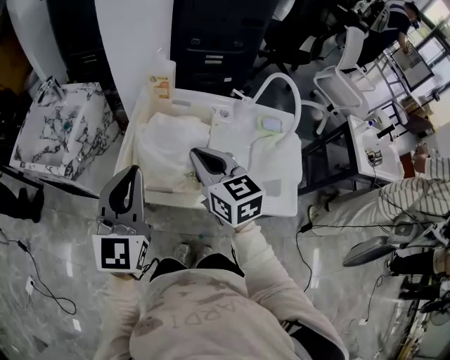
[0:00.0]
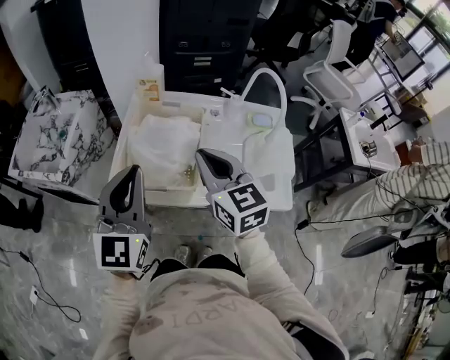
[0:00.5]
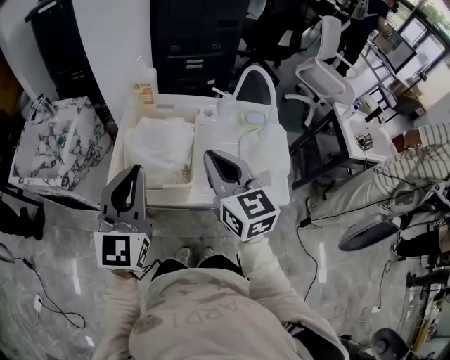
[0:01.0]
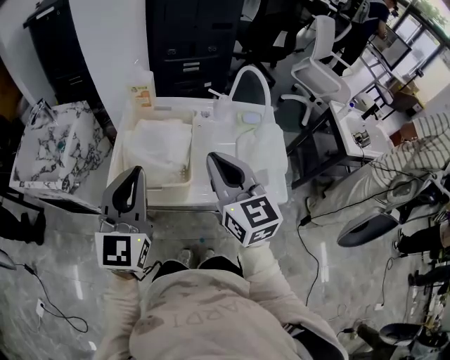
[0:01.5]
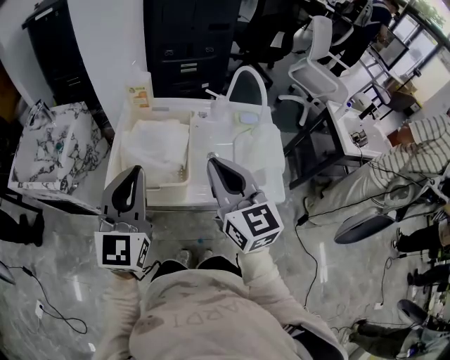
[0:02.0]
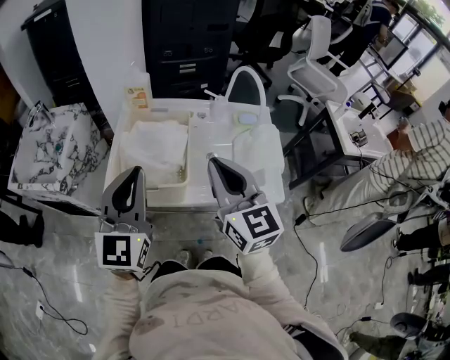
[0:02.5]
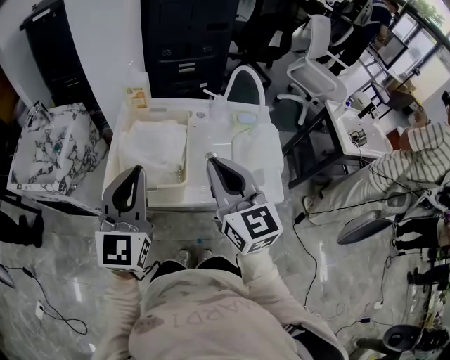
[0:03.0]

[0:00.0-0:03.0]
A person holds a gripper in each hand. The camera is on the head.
0:00.0 to 0:01.5: The right gripper travels backward, to the right and upward by approximately 15 cm, while the left gripper shifts by approximately 5 cm.
0:01.5 to 0:03.0: The grippers stay close to where they were, moving slightly.

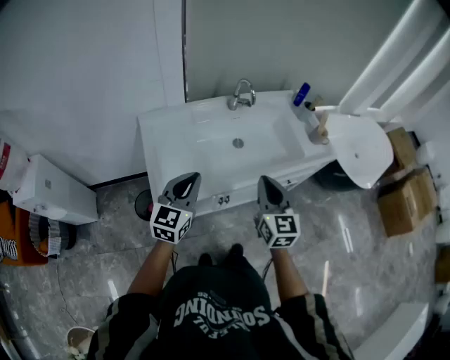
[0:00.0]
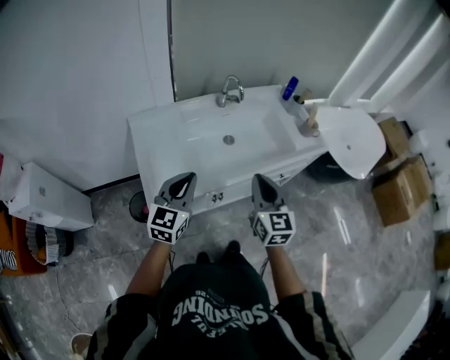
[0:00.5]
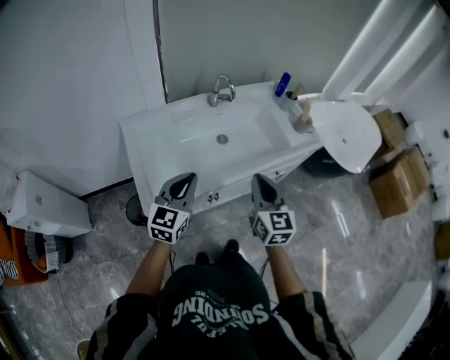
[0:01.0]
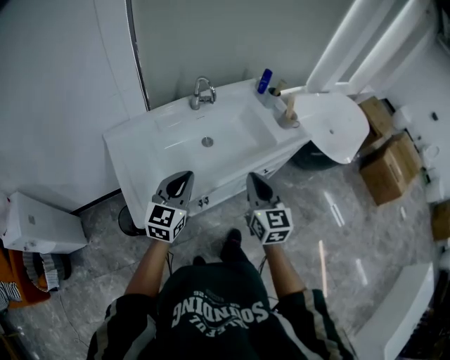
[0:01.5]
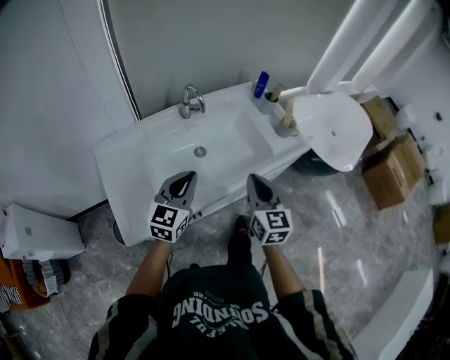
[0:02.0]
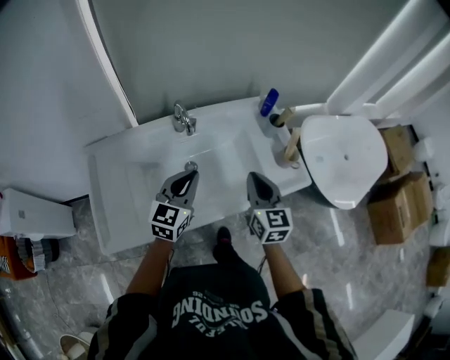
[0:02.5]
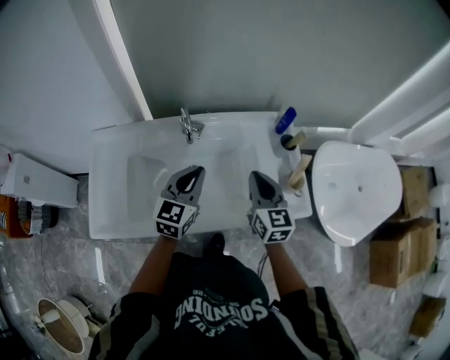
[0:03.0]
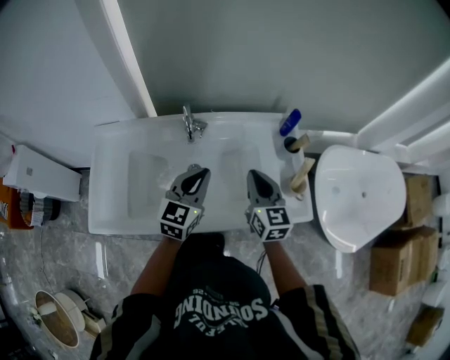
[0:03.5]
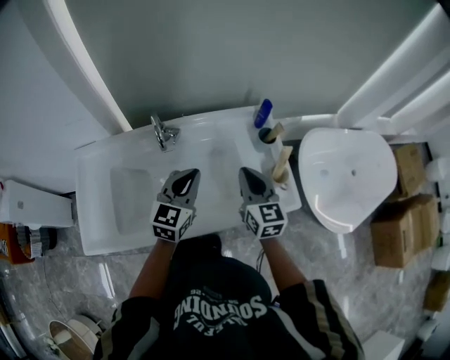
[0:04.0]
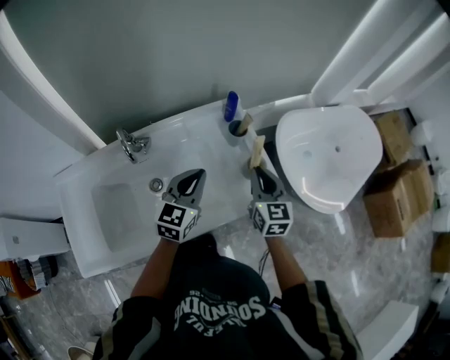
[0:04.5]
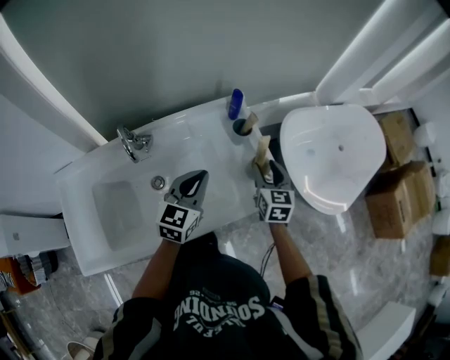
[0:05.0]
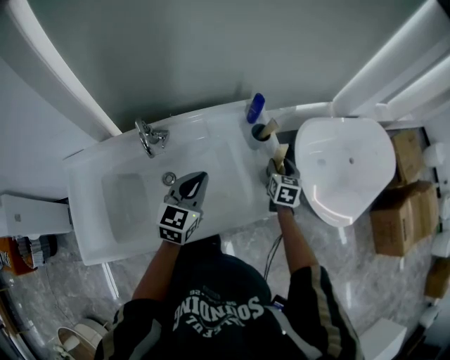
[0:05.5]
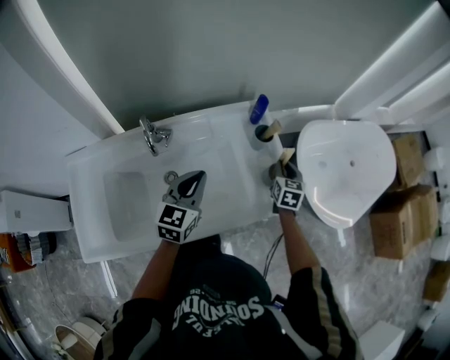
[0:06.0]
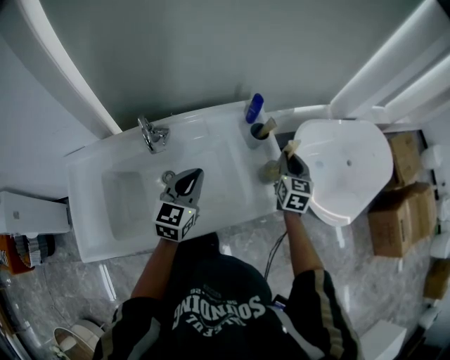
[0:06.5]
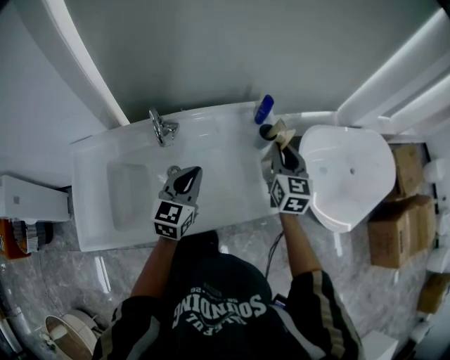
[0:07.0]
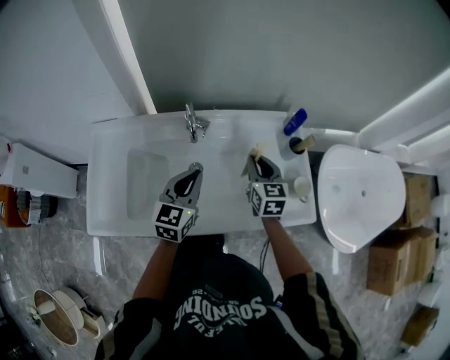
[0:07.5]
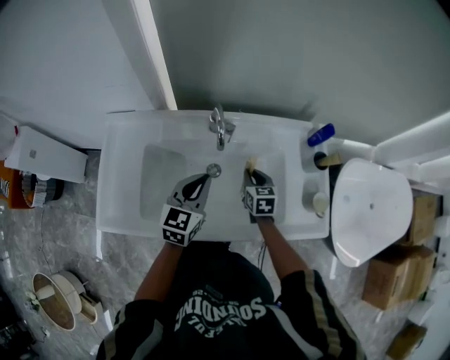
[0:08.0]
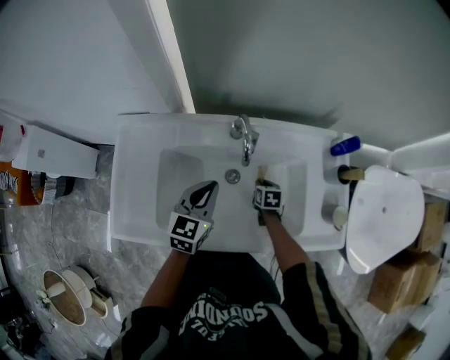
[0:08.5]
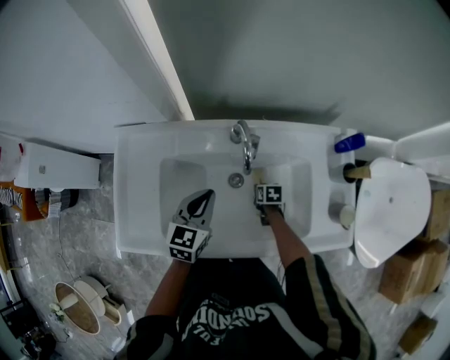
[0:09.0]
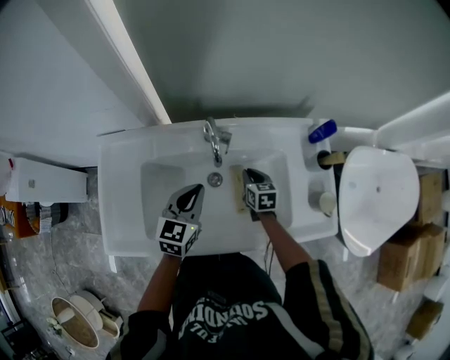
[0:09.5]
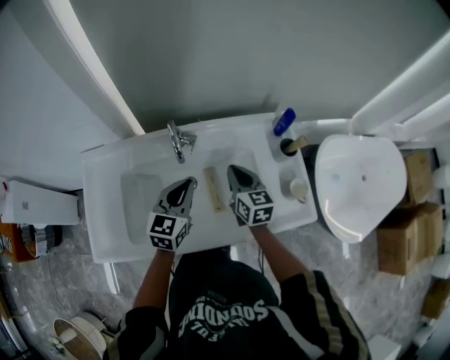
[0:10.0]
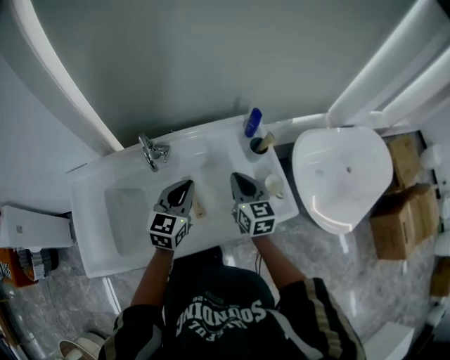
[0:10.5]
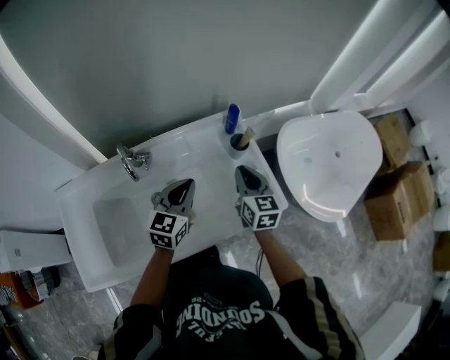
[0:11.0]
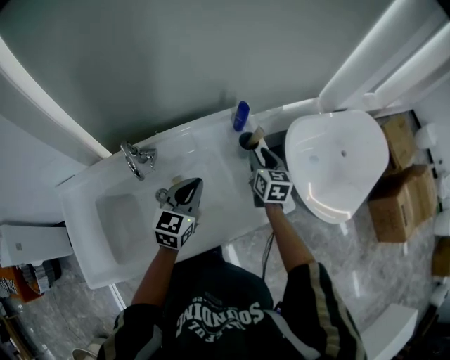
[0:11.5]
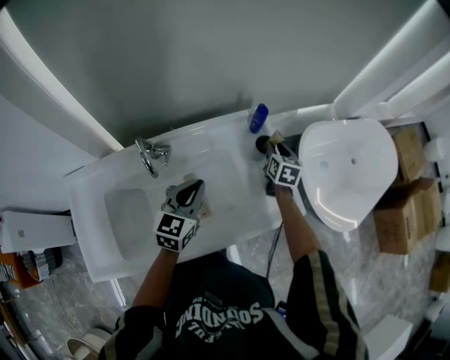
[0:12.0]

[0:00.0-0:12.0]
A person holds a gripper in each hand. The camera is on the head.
0:00.0 to 0:02.0: Both grippers move forward and to the right, approximately 15 cm.
0:02.0 to 0:04.0: Both grippers move forward and to the right, roughly 30 cm. The right gripper swivels approximately 20 degrees.
0:04.0 to 0:06.0: The left gripper moves roughly 10 cm to the right and comes back; the right gripper is displaced to the right, downward and forward by roughly 25 cm, changes its angle by some 30 degrees, and opens and closes again.
0:06.0 to 0:08.0: The left gripper shifts by approximately 15 cm. Meanwhile the right gripper moves about 15 cm upward and comes back, and rotates roughly 30 degrees.
0:08.0 to 0:10.0: The right gripper moves upward, approximately 10 cm, and changes its angle by some 20 degrees.
0:10.0 to 0:12.0: The left gripper heads to the right, covering roughly 10 cm; the right gripper travels to the right and forward by some 30 cm, turns by roughly 30 degrees, and opens its fingers.

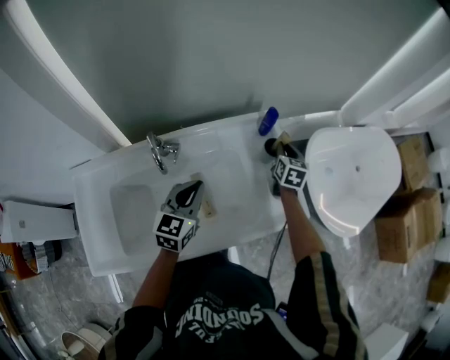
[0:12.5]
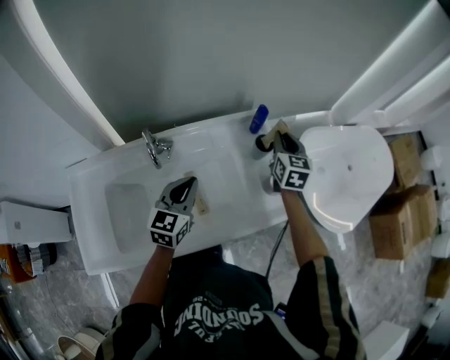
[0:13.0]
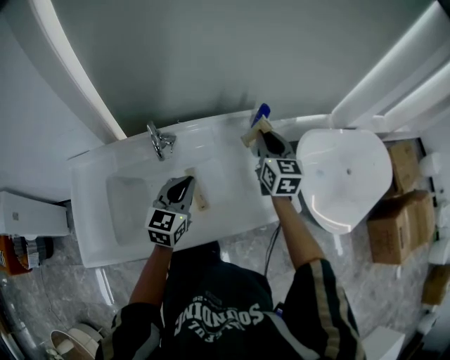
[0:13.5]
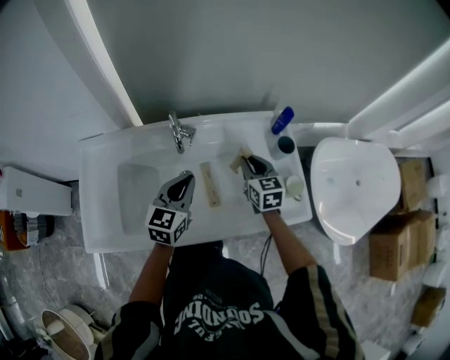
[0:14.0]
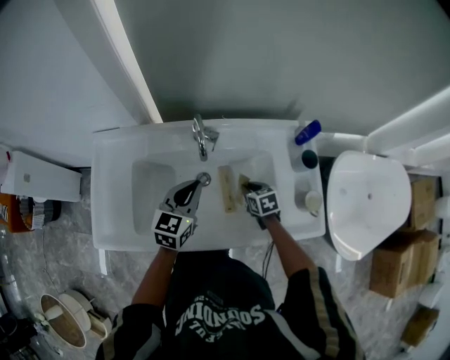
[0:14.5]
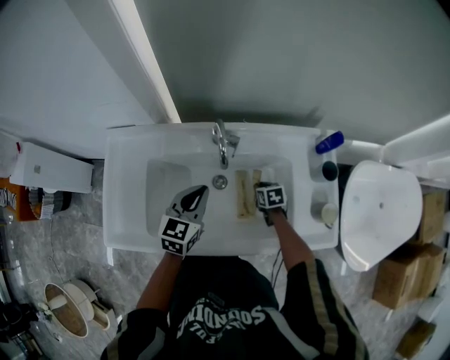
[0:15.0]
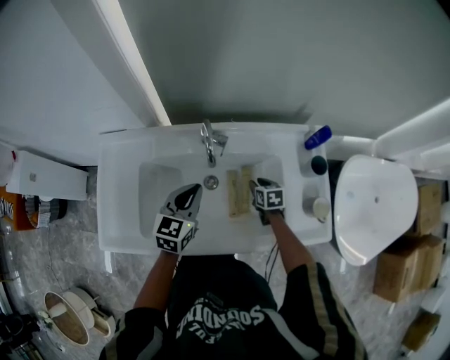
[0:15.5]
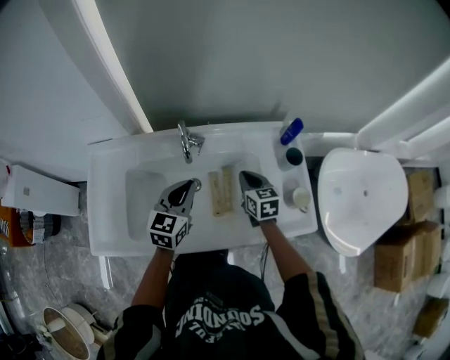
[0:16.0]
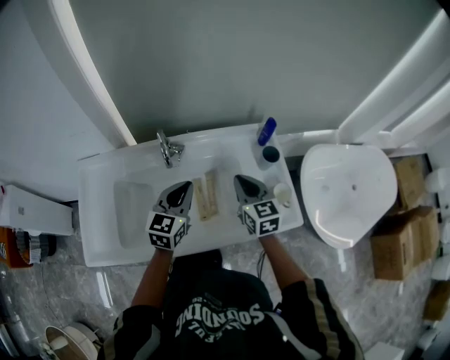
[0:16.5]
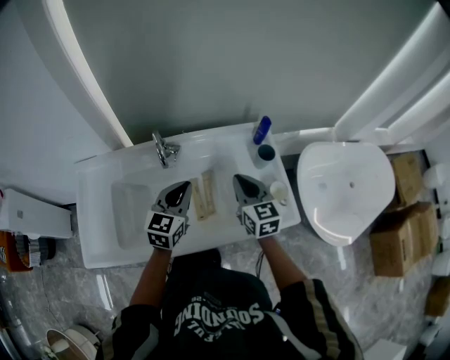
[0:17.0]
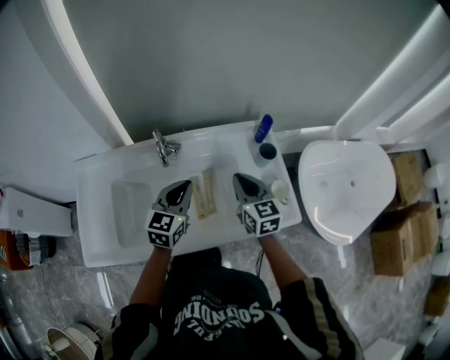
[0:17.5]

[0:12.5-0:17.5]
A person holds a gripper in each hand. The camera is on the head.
0:12.5 to 0:15.0: The left gripper shifts by approximately 15 cm; the right gripper shifts by approximately 35 cm, and points its fingers approximately 30 degrees further downward.
0:15.0 to 0:17.5: The right gripper heads upward, covering some 30 cm, and tips its fingers upward by approximately 40 degrees, while the left gripper travels to the right and upward by about 15 cm.

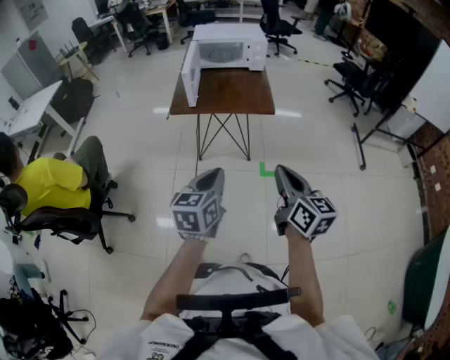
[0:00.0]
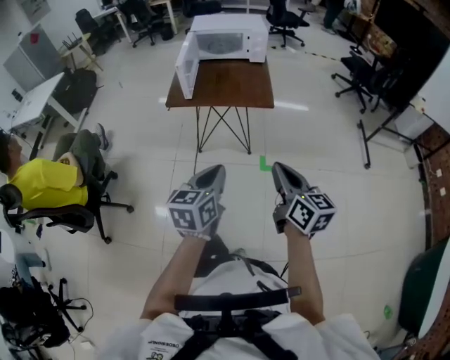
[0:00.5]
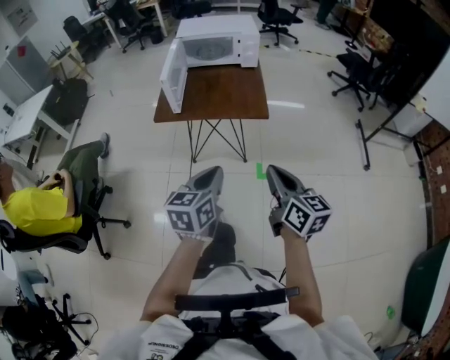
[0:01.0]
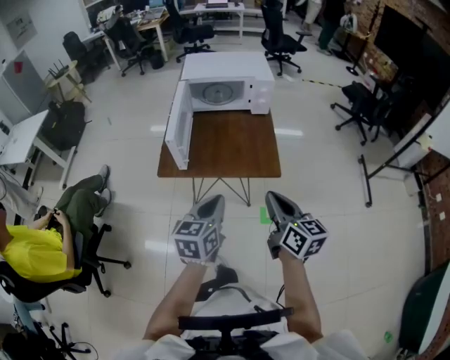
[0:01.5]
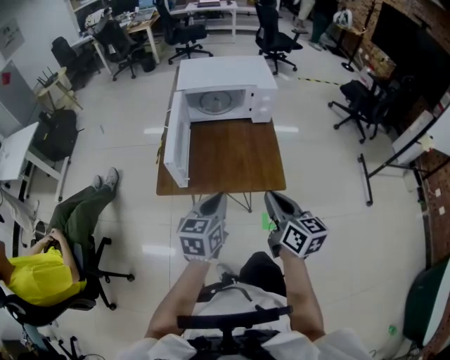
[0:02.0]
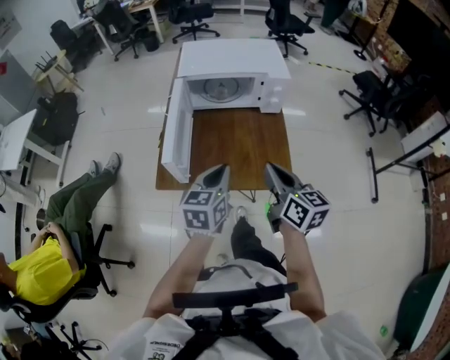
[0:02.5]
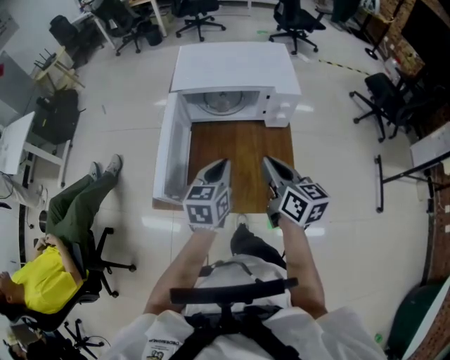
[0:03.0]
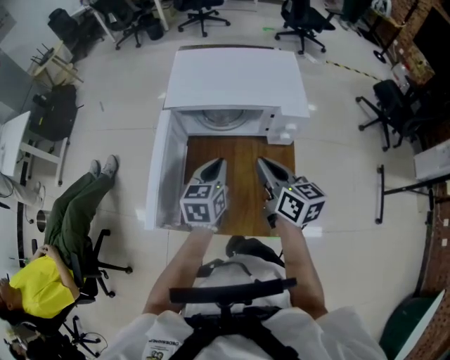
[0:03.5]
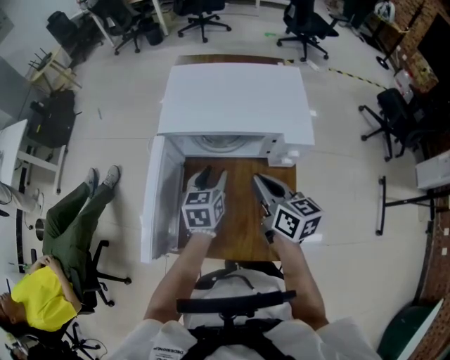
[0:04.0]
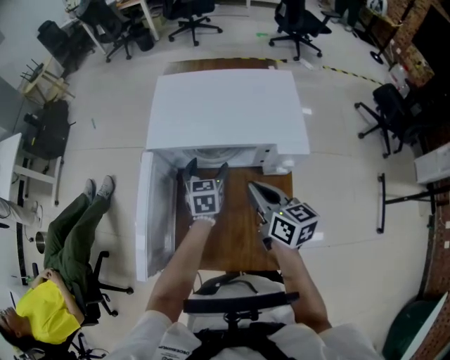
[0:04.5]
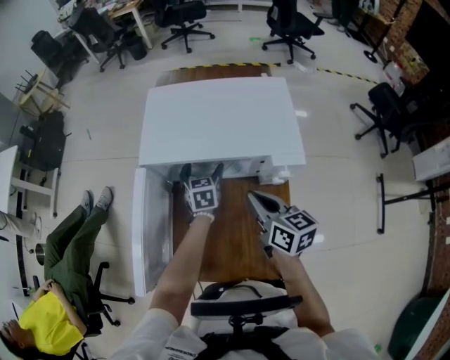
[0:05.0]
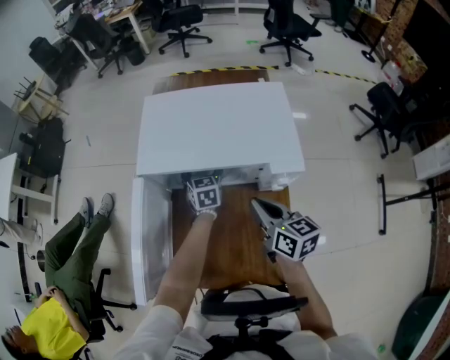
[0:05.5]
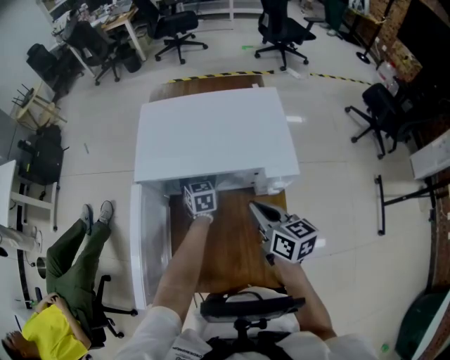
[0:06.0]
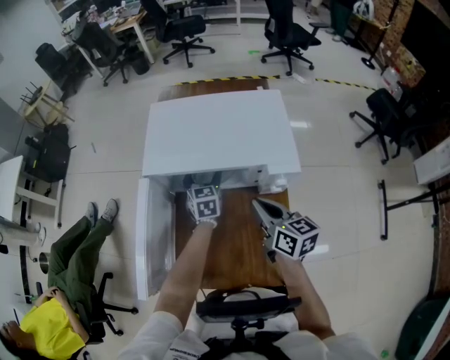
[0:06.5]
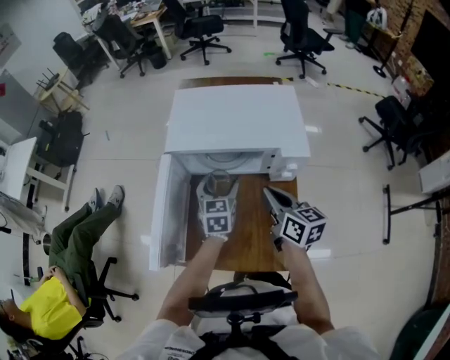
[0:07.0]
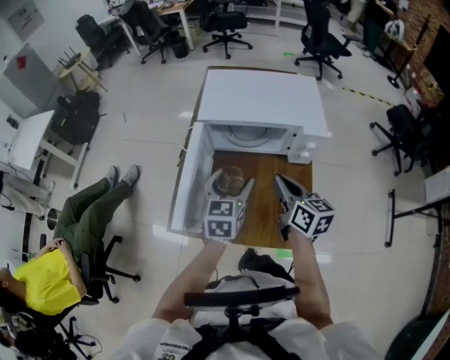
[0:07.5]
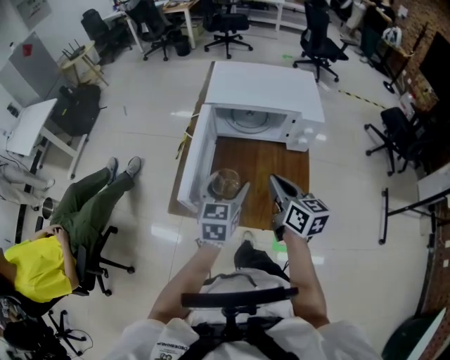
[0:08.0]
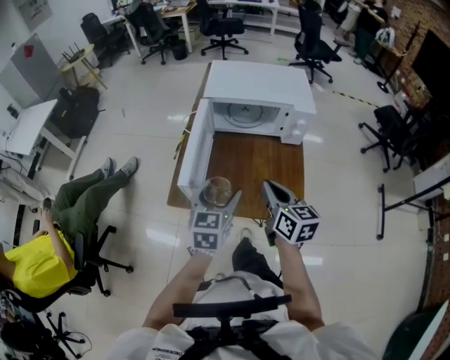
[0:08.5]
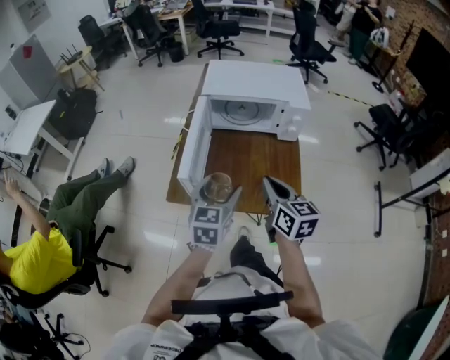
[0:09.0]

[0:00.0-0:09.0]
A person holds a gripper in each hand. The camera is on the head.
0:00.0 to 0:02.0: The grippers both shift forward by approximately 35 cm.
0:02.0 to 0:04.5: Both grippers travel together forward, some 40 cm. The left gripper rotates about 20 degrees, and opens up.
0:04.5 to 0:07.0: The left gripper moves backward, roughly 5 cm.
0:07.0 to 0:09.0: The right gripper goes approximately 20 cm backward and to the left. Meanwhile the left gripper goes some 25 cm backward.
